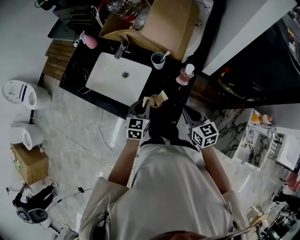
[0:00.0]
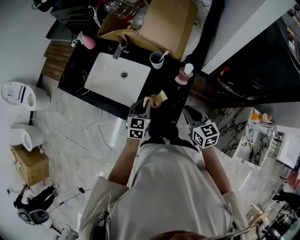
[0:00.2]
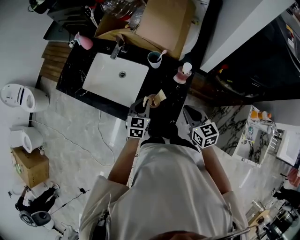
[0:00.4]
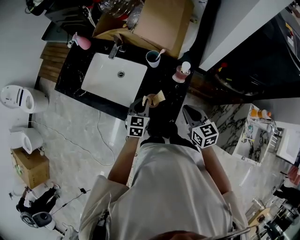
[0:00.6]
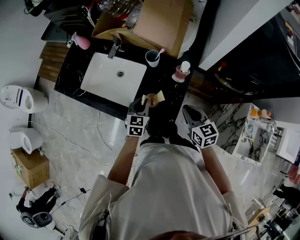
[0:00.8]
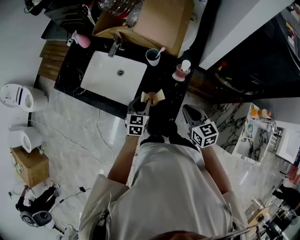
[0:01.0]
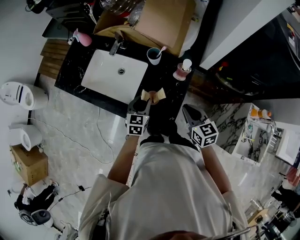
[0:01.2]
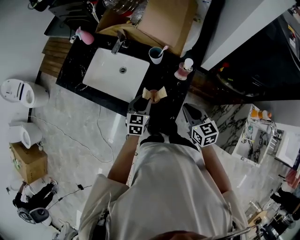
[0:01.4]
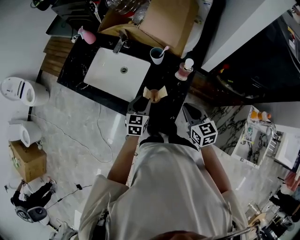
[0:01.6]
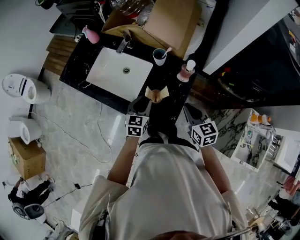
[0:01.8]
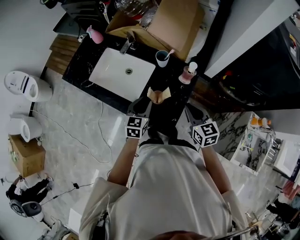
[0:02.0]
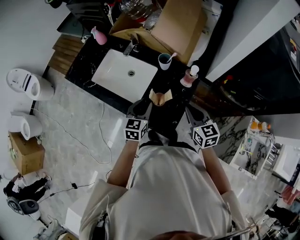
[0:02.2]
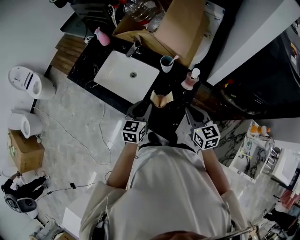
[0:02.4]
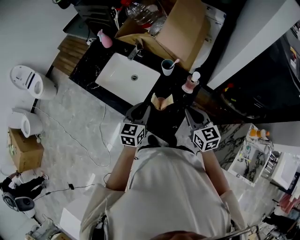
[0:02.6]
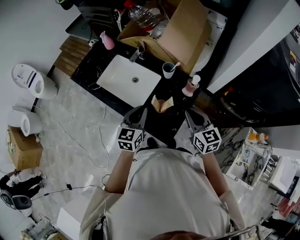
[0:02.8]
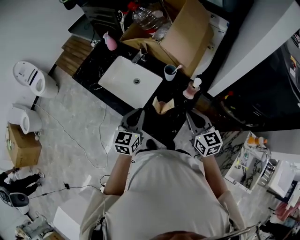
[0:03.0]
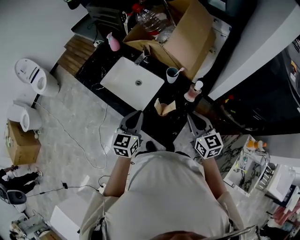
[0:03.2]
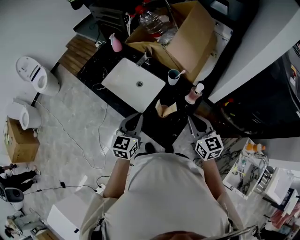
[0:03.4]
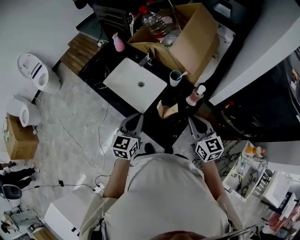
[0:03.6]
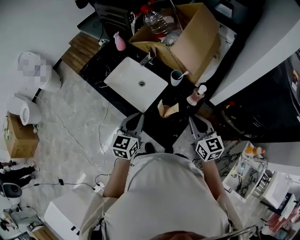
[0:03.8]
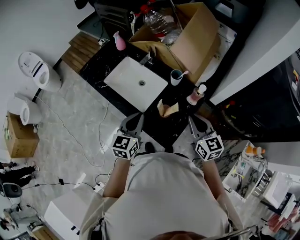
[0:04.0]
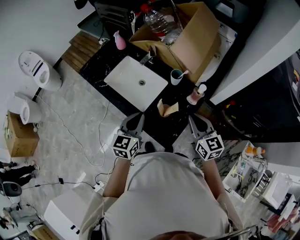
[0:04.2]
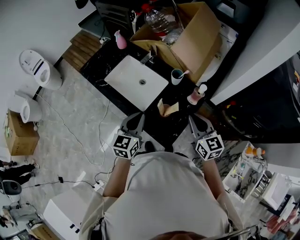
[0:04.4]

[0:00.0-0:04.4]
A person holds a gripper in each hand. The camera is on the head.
0:00.0 to 0:01.4: The left gripper opens its fingers.
0:01.4 to 0:03.0: The left gripper shifts roughly 15 cm upward, and closes. Meanwhile the right gripper travels upward by some 10 cm.
0:03.0 to 0:04.4: The grippers move only a little.

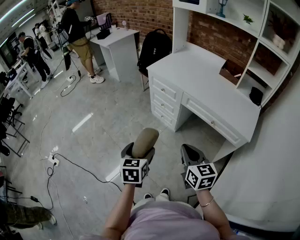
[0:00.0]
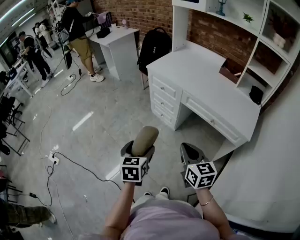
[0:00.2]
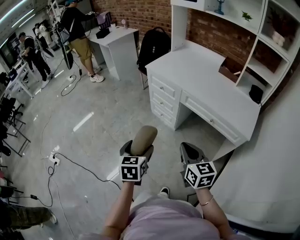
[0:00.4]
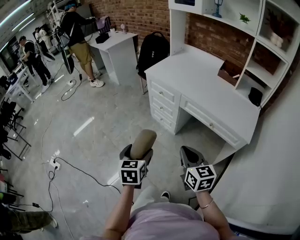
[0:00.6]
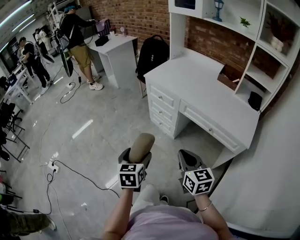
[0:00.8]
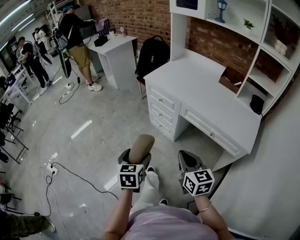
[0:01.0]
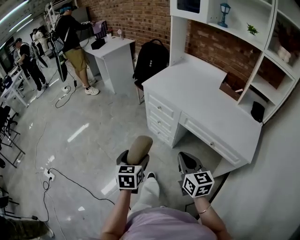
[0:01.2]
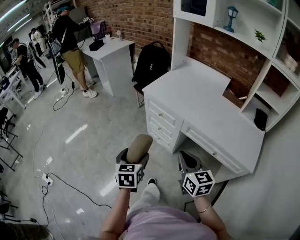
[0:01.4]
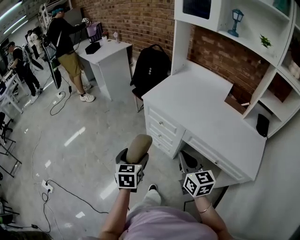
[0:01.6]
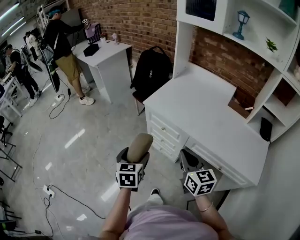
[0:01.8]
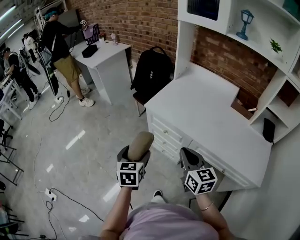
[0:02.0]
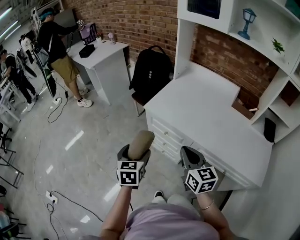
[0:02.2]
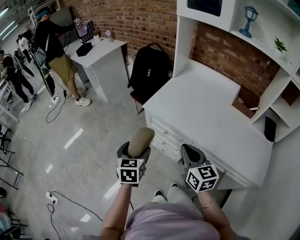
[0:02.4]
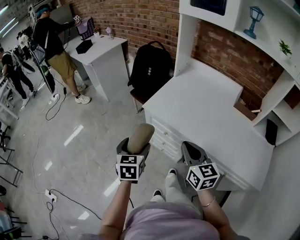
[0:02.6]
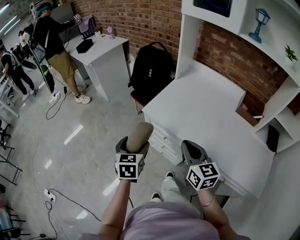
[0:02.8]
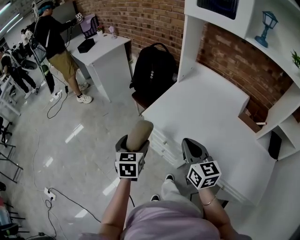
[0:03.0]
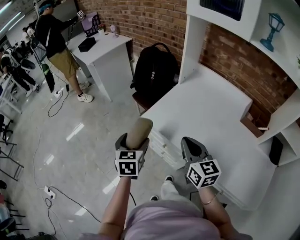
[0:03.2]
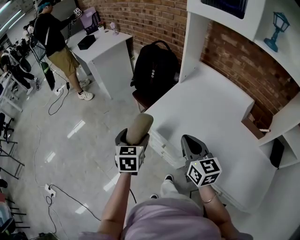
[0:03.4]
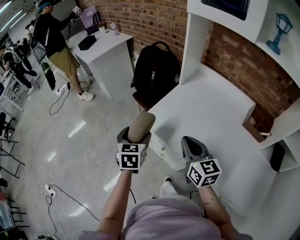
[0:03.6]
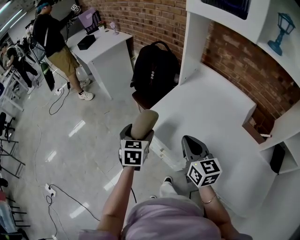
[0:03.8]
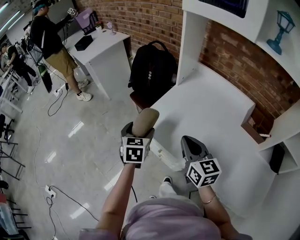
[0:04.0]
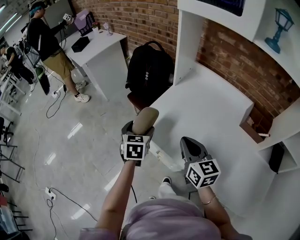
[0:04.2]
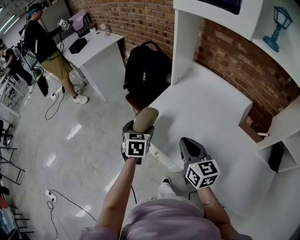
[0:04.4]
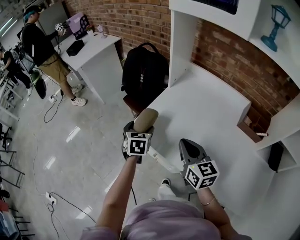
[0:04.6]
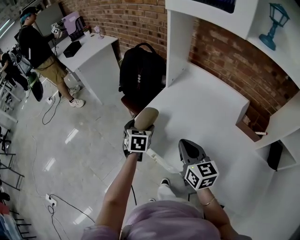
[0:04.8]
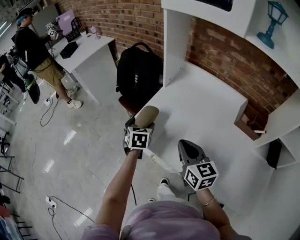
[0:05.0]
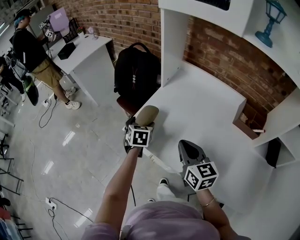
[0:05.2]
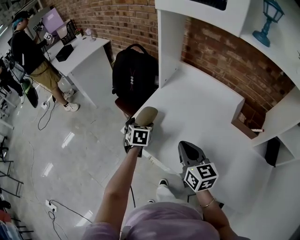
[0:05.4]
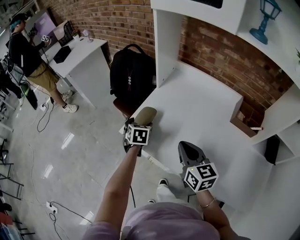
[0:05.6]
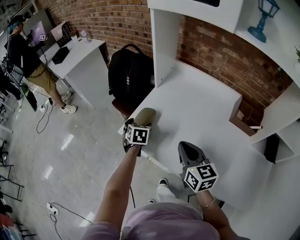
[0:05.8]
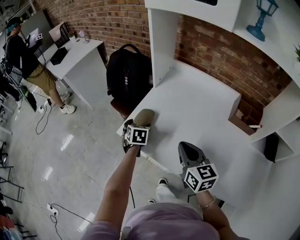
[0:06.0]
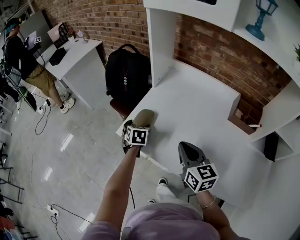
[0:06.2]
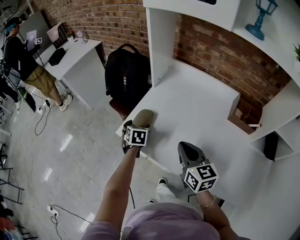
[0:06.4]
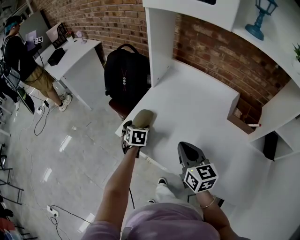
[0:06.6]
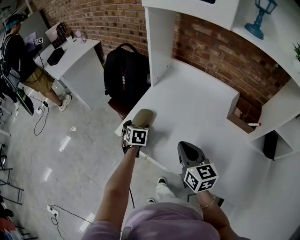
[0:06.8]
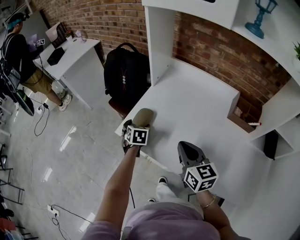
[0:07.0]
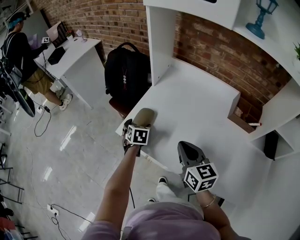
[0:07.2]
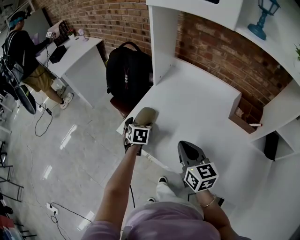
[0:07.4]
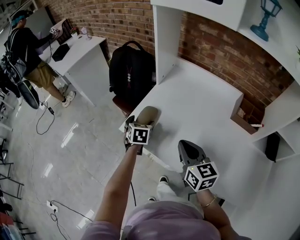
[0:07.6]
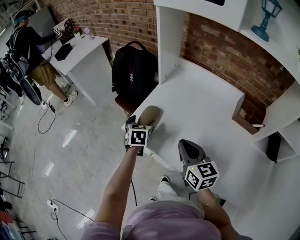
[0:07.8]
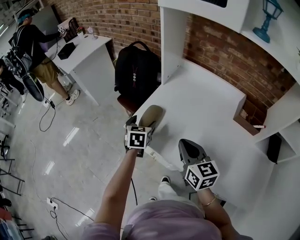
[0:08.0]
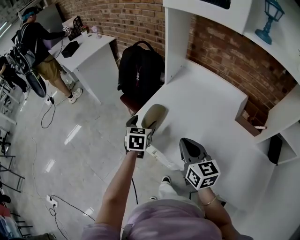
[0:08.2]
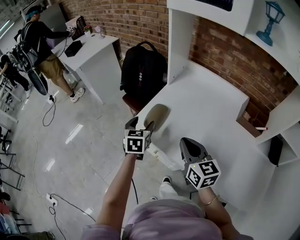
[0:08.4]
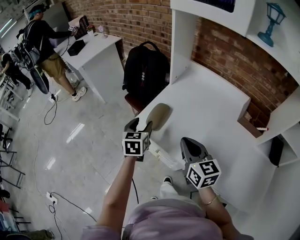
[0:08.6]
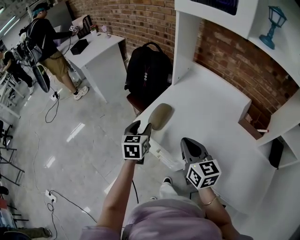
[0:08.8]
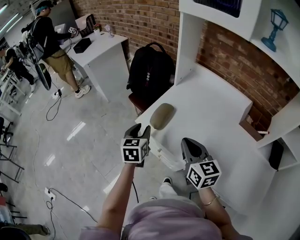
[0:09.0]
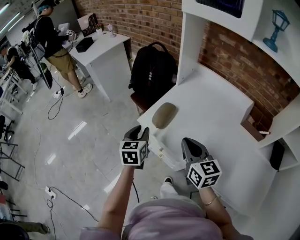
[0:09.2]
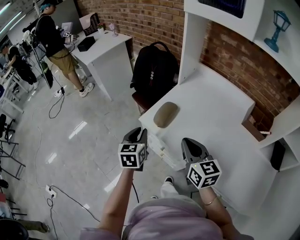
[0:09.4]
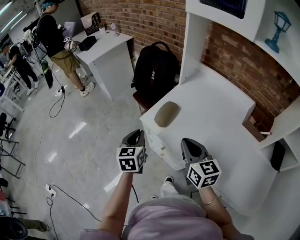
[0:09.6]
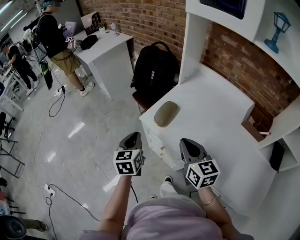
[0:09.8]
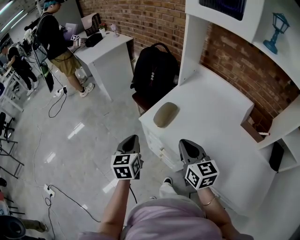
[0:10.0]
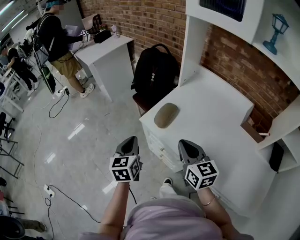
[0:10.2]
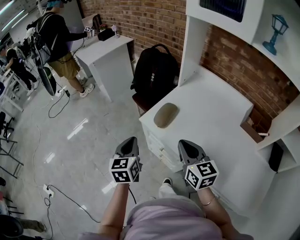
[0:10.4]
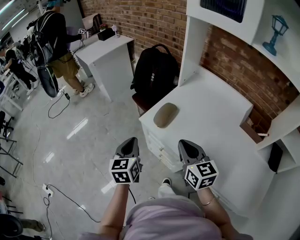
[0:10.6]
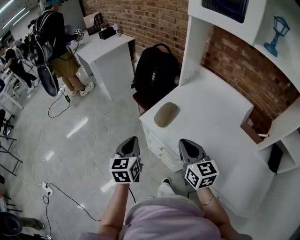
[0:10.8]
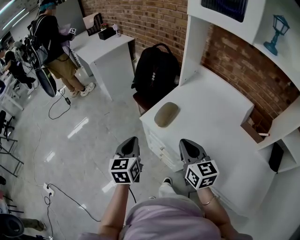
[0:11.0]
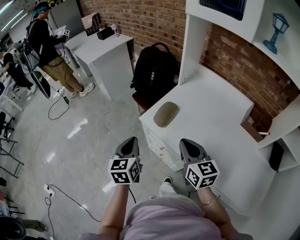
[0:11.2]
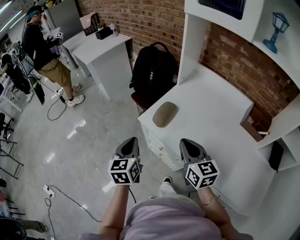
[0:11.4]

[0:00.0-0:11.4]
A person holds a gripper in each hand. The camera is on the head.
0:00.0 to 0:01.4: The two grippers go roughly 20 cm forward.
0:01.4 to 0:02.8: The grippers both shift forward by roughly 30 cm.
0:02.8 to 0:04.2: Both grippers travel together forward and to the right, about 15 cm.
0:04.2 to 0:05.6: The left gripper is displaced forward, downward and to the right by some 15 cm. Meanwhile the right gripper travels to the right by some 5 cm.
0:05.6 to 0:07.2: The grippers move only a little.
0:07.2 to 0:08.6: The left gripper moves upward, backward and to the left, about 15 cm, and changes its angle by roughly 20 degrees, while the right gripper heads to the left, covering about 5 cm.
0:08.6 to 0:10.0: The left gripper travels backward and to the left by some 15 cm, and closes up.
0:10.0 to 0:11.4: The grippers stay close to where they were, moving slightly.

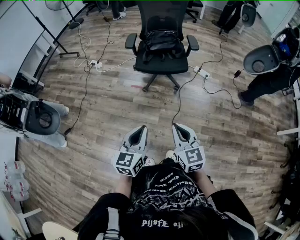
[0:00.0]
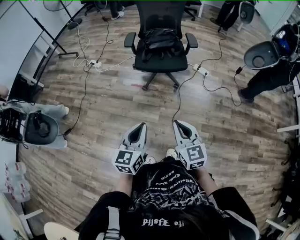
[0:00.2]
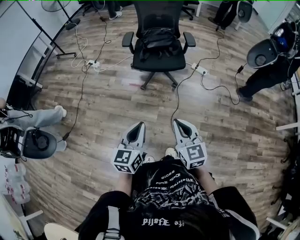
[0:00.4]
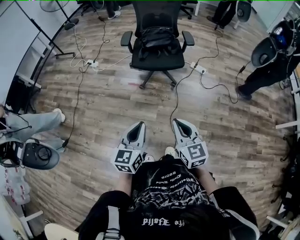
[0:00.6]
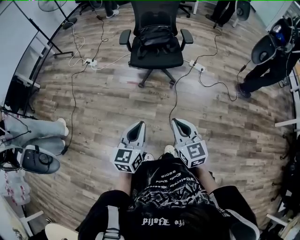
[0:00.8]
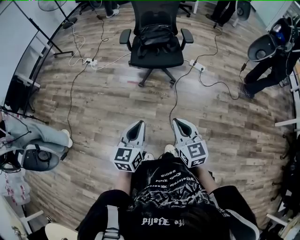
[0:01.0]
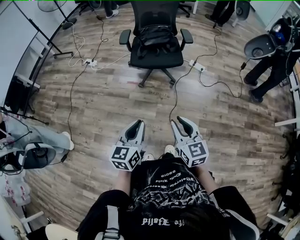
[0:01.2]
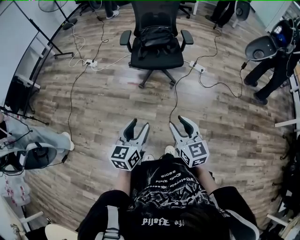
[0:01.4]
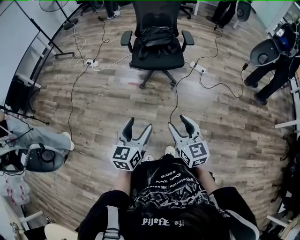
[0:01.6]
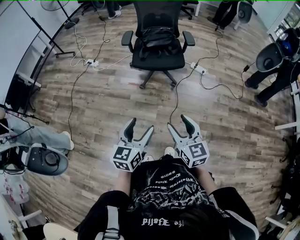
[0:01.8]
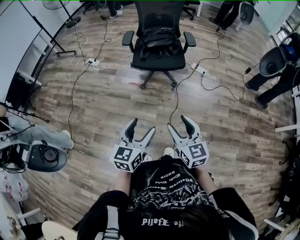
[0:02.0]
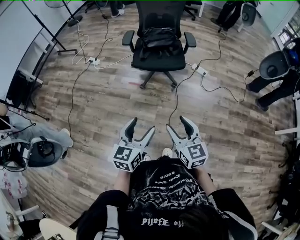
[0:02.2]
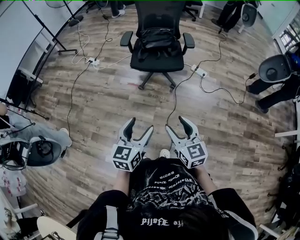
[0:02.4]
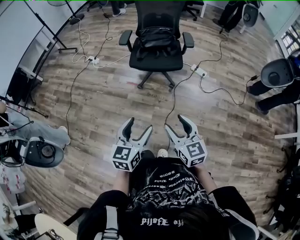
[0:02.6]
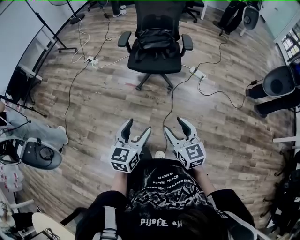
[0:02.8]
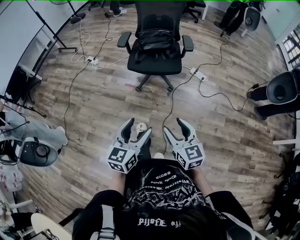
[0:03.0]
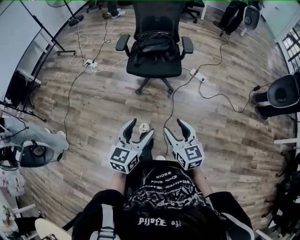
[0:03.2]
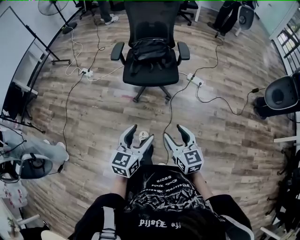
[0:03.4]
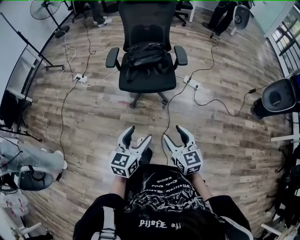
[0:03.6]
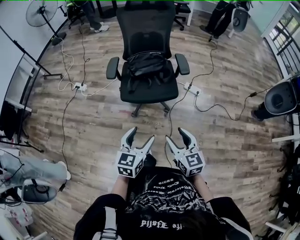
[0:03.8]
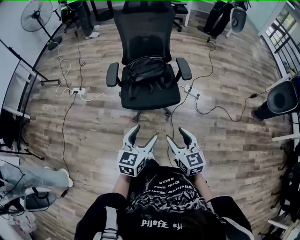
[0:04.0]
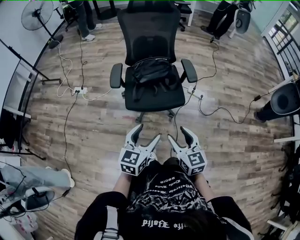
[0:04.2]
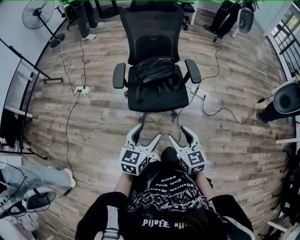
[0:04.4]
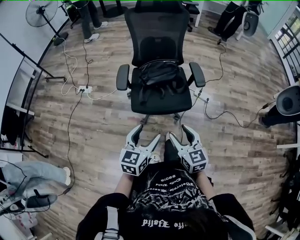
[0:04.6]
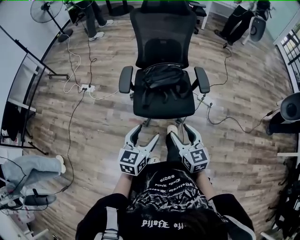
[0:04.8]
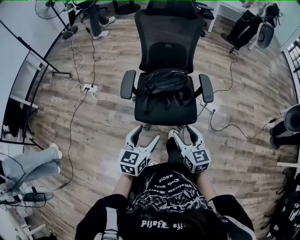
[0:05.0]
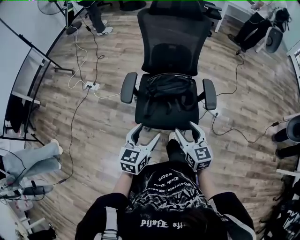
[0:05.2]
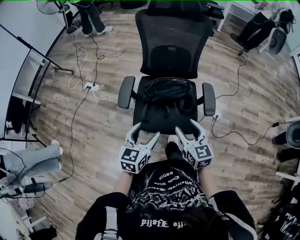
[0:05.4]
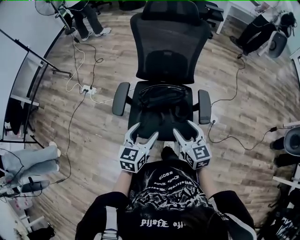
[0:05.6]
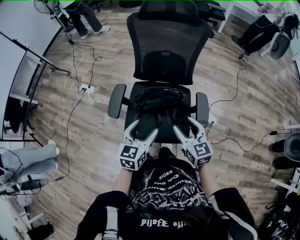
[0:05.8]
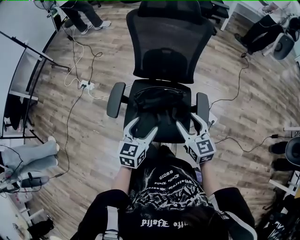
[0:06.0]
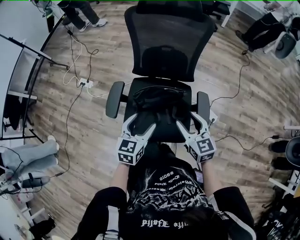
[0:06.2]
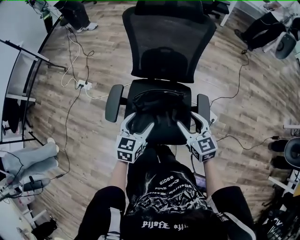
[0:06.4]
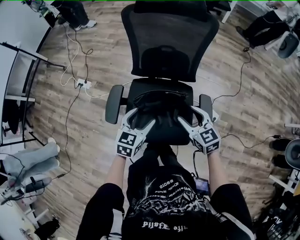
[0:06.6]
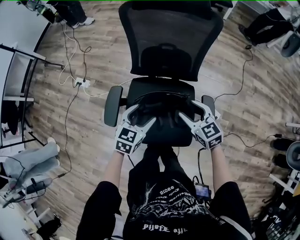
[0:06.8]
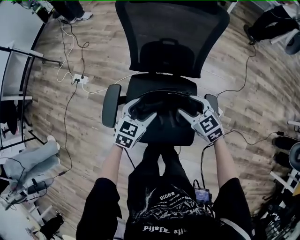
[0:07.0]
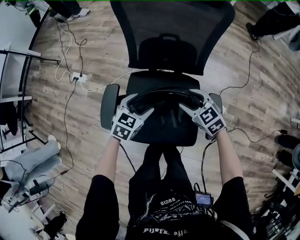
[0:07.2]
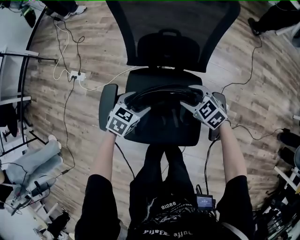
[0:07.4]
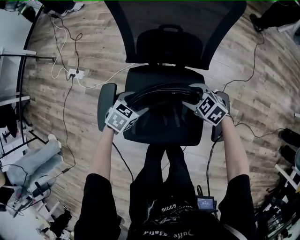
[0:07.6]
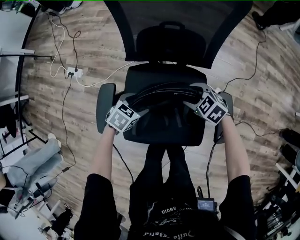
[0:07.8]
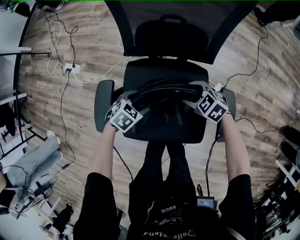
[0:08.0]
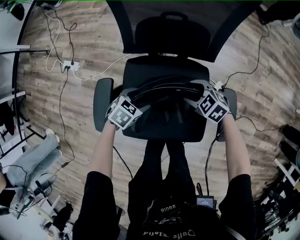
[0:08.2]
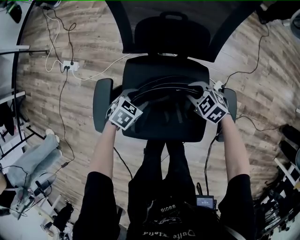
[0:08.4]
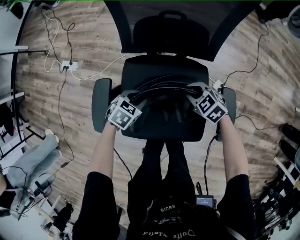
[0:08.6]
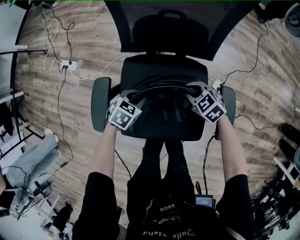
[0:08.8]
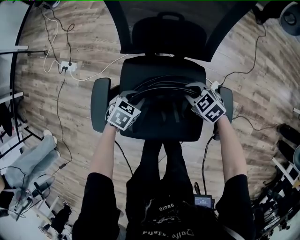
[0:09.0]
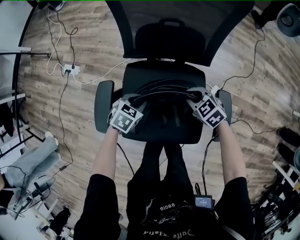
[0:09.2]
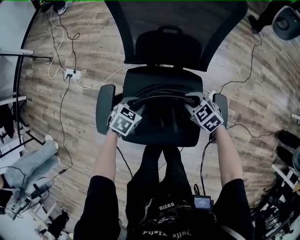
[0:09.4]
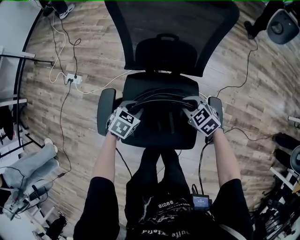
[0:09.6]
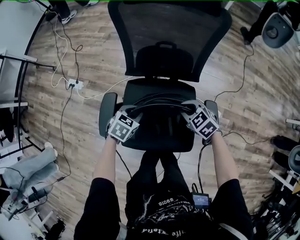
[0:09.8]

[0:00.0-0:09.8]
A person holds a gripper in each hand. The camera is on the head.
0:00.0 to 0:01.4: The right gripper opens up. Meanwhile the left gripper opens its fingers.
0:01.4 to 0:02.8: Both grippers travel together to the right, some 10 cm. The left gripper opens its fingers.
0:02.8 to 0:04.2: Both grippers move forward, about 35 cm.
0:04.2 to 0:05.6: The grippers both shift forward by roughly 35 cm.
0:05.6 to 0:07.0: The grippers both shift forward and downward by approximately 25 cm. The right gripper turns by about 30 degrees; the left gripper turns by about 20 degrees.
0:07.0 to 0:08.4: The two grippers go about 20 cm downward. The right gripper swivels about 20 degrees, and closes. Meanwhile the left gripper swivels some 30 degrees.
0:08.4 to 0:09.8: The two grippers go approximately 15 cm upward. The left gripper closes its fingers.
